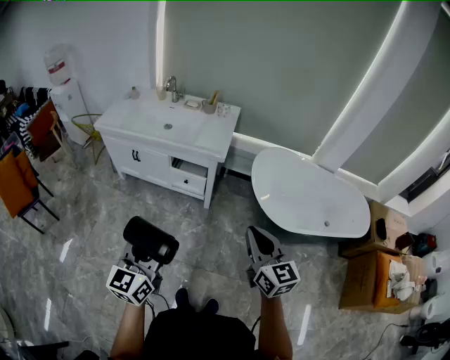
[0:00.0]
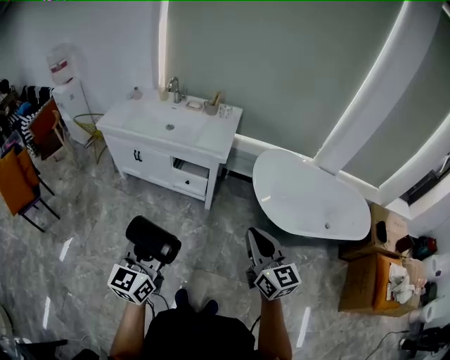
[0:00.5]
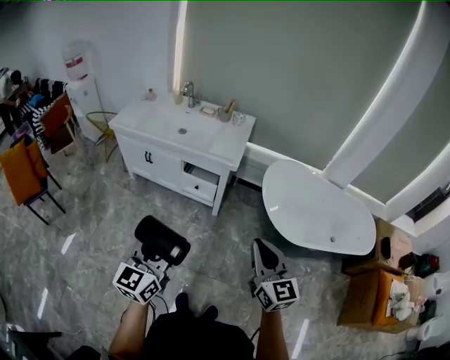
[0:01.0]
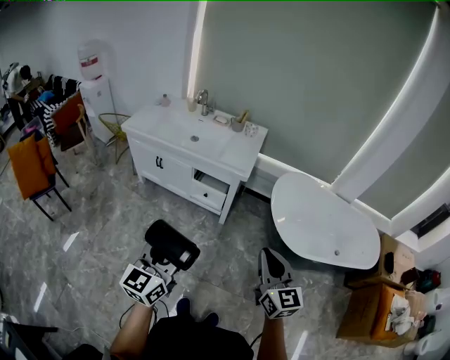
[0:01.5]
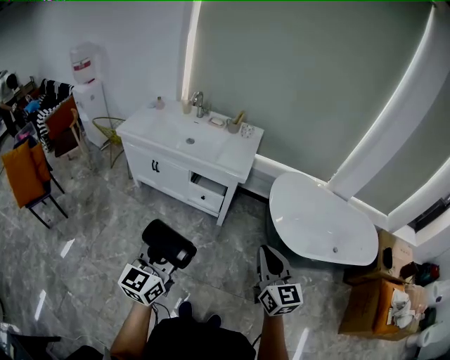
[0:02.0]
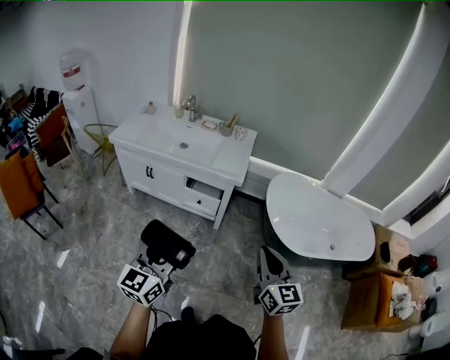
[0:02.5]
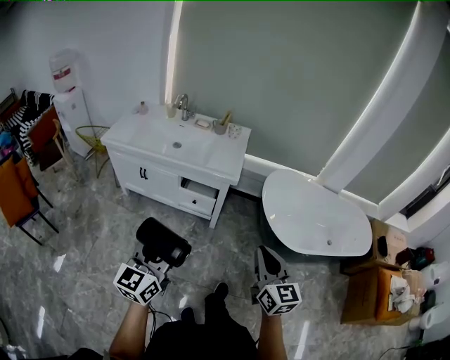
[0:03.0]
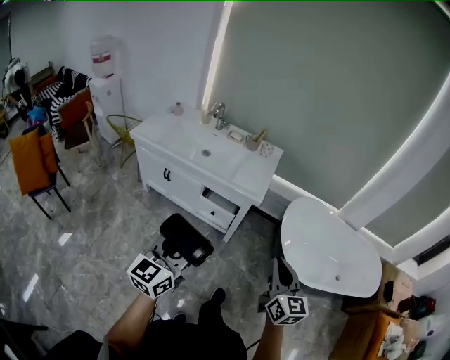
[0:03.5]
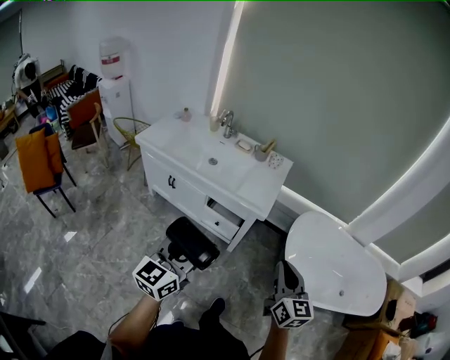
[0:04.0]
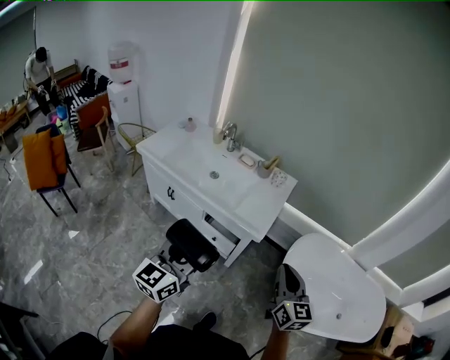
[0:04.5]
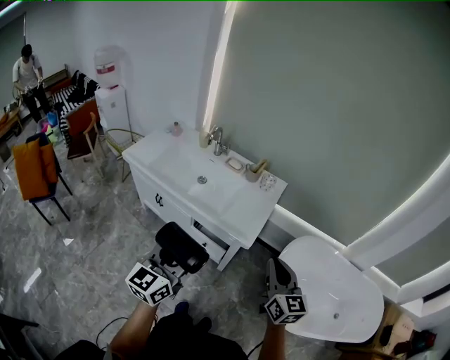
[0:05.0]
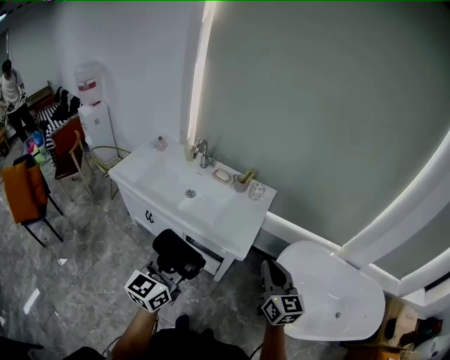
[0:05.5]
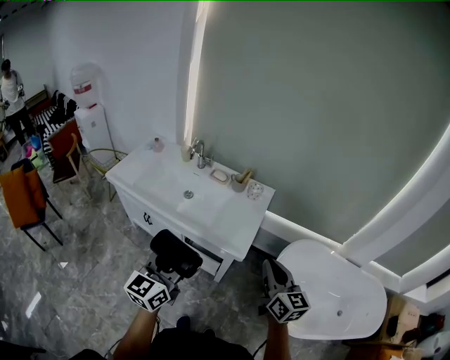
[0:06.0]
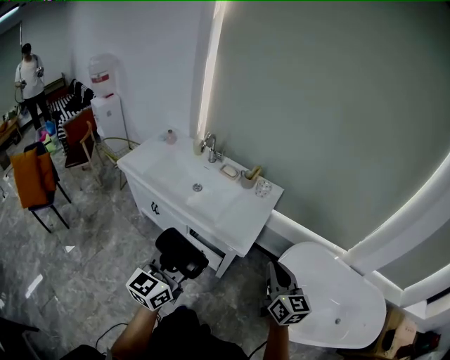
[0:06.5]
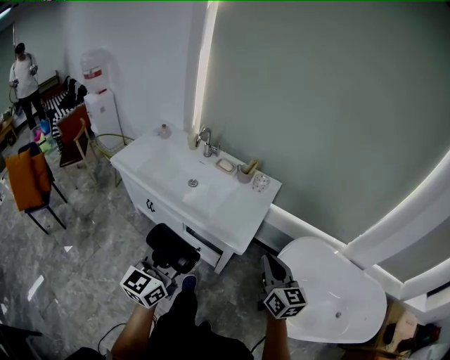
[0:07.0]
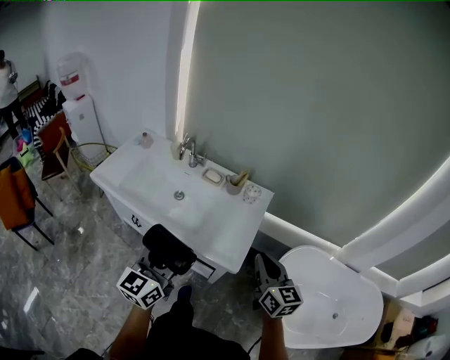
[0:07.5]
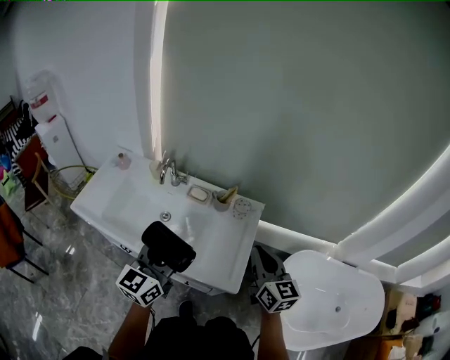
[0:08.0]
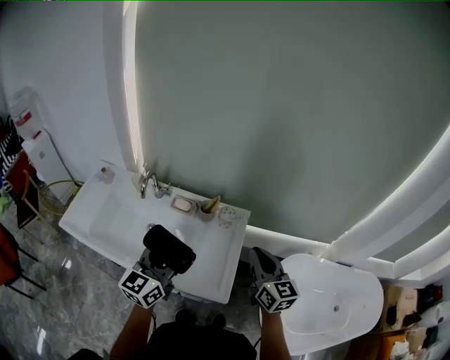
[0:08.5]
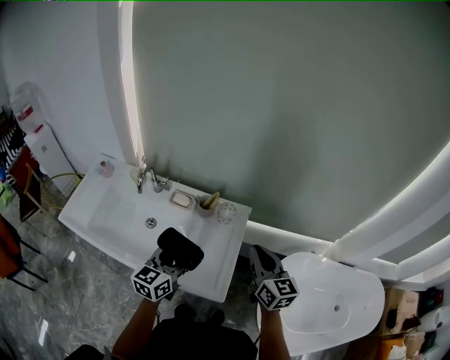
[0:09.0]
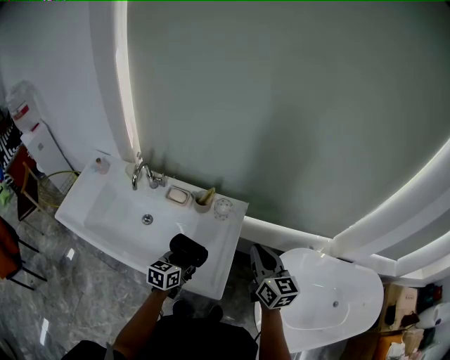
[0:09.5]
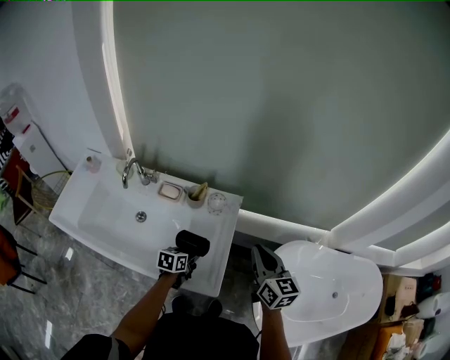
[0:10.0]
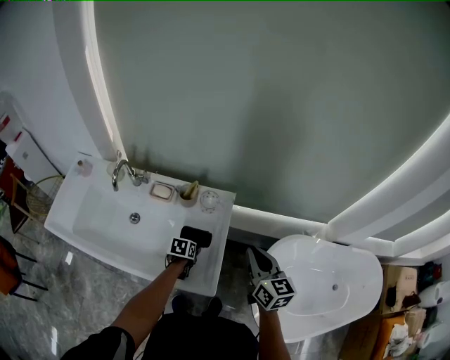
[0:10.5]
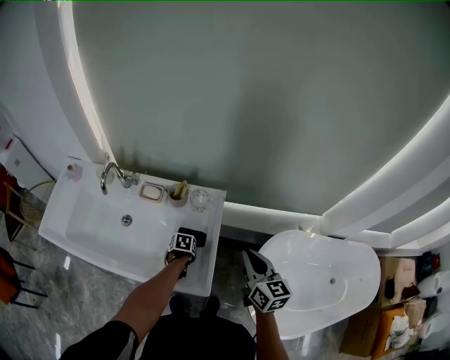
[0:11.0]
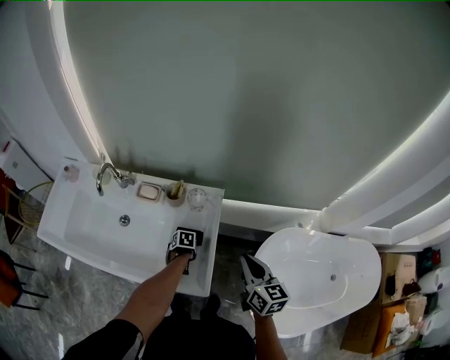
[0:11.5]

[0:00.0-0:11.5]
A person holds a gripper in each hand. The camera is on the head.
0.0 to 2.0 s: There are only small adjustments of the grippers.
2.0 to 4.0 s: The grippers both shift forward by some 20 cm.
4.0 to 6.0 s: The grippers both shift forward by roughly 20 cm.
6.0 to 7.5 s: The two grippers go approximately 15 cm forward.
7.5 to 9.5 s: The right gripper shifts roughly 20 cm forward. Meanwhile the left gripper heads forward, downward and to the right, covering about 35 cm, and changes its angle by approximately 40 degrees.
9.5 to 11.5 s: The right gripper goes approximately 5 cm downward; the left gripper is displaced downward by approximately 20 cm, and angles its fingers downward, by approximately 50 degrees.

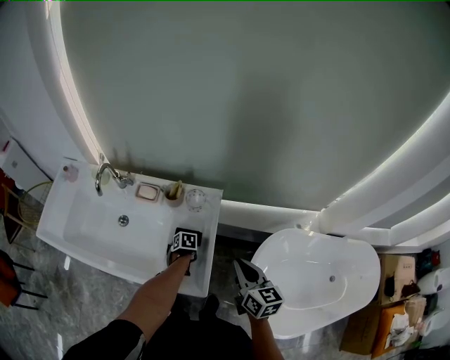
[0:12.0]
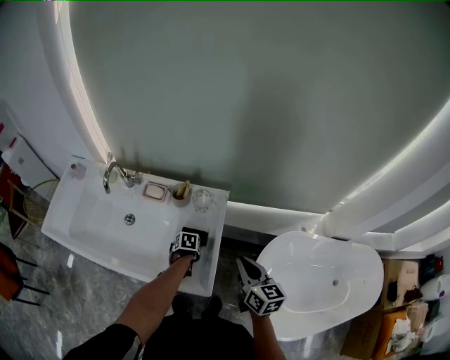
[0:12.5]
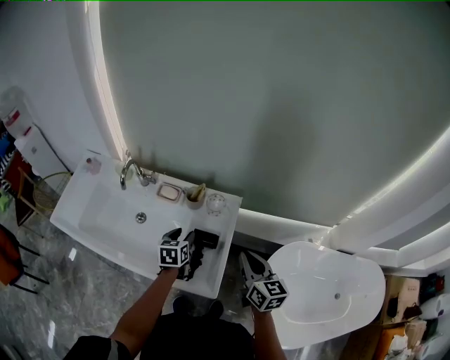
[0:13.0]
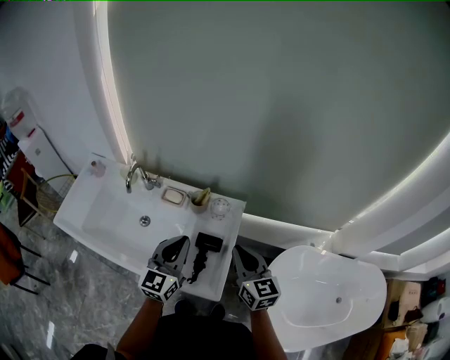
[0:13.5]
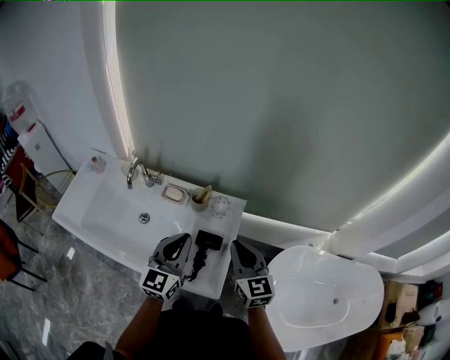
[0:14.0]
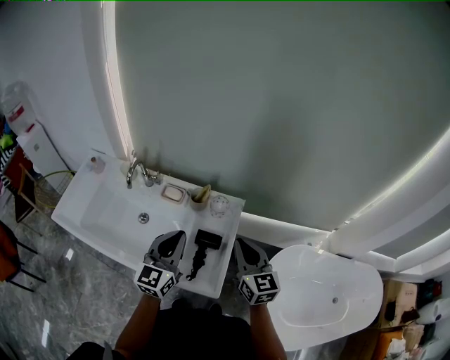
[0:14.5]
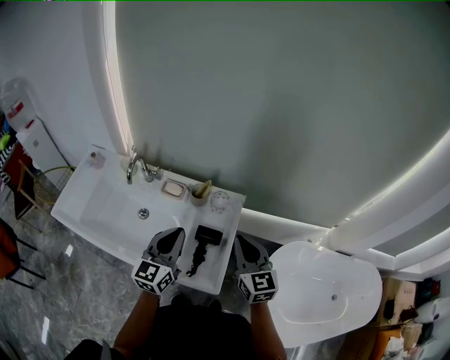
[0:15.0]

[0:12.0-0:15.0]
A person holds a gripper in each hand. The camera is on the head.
12.0 to 13.5 s: The left gripper heads upward, covering approximately 40 cm, points its fingers about 80 degrees further upward, and closes. The right gripper moves roughly 10 cm.
13.5 to 15.0 s: The grippers make only small movements.

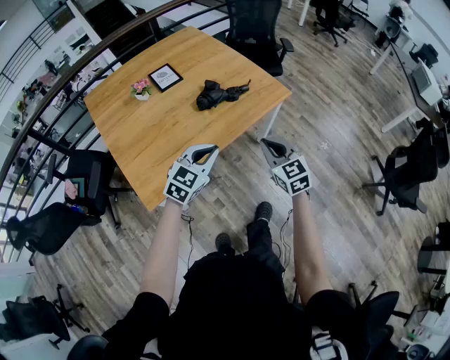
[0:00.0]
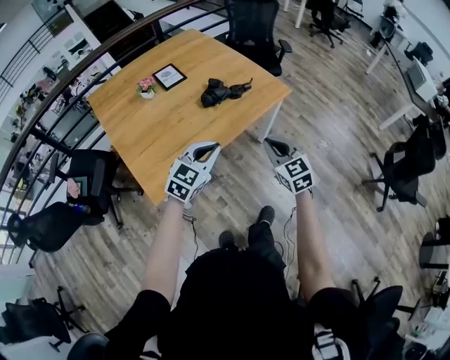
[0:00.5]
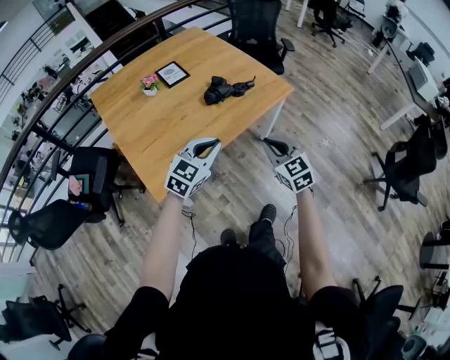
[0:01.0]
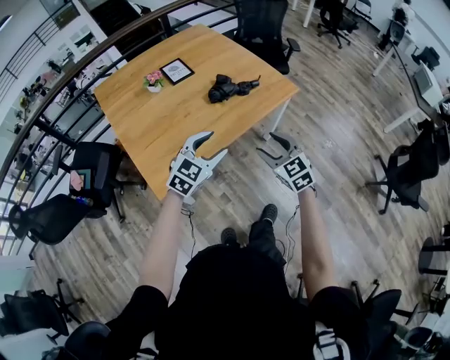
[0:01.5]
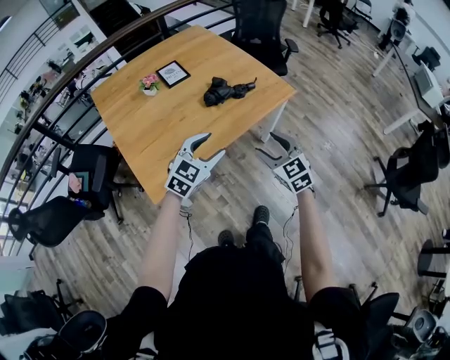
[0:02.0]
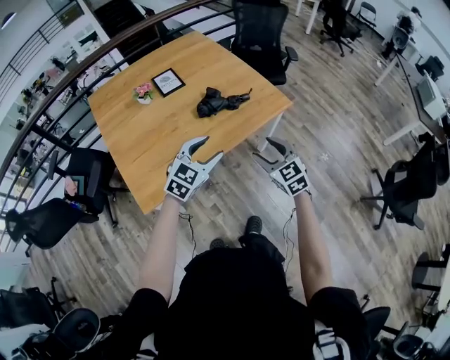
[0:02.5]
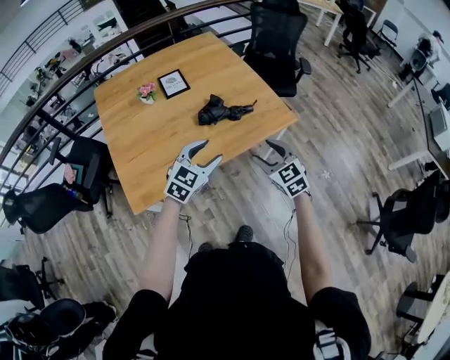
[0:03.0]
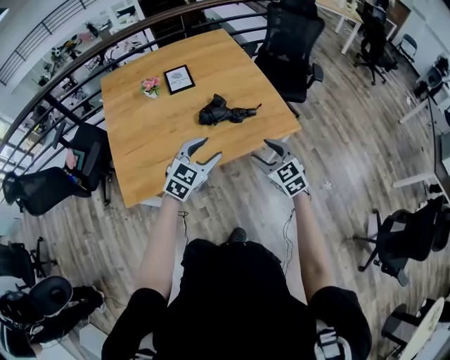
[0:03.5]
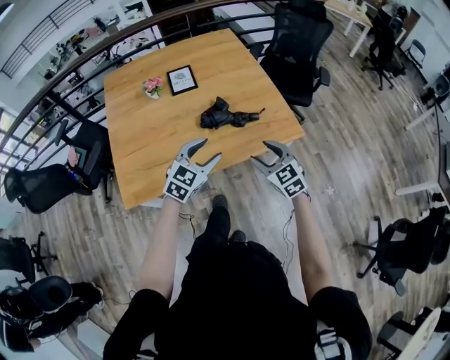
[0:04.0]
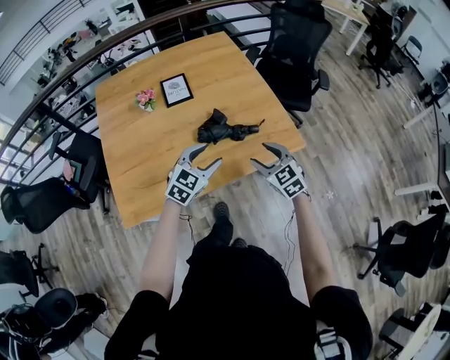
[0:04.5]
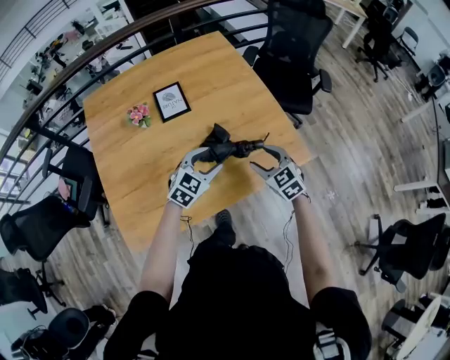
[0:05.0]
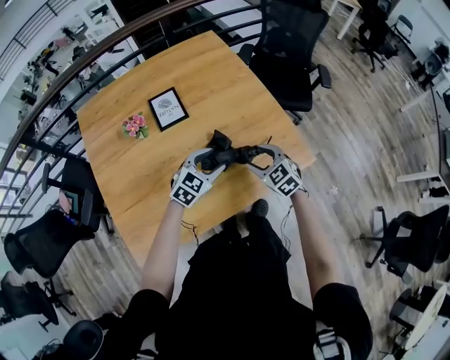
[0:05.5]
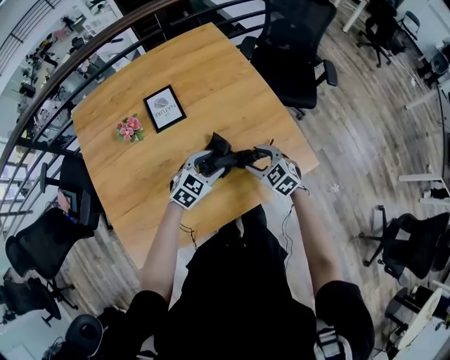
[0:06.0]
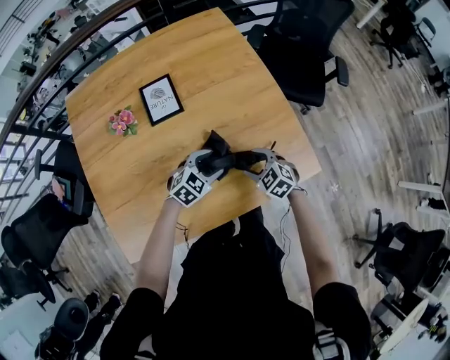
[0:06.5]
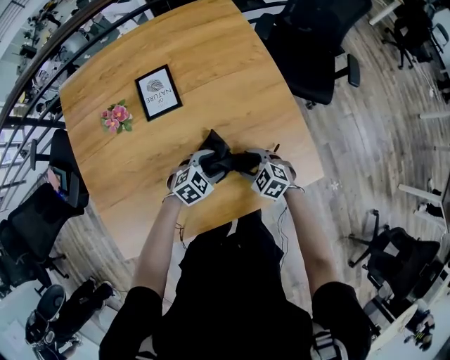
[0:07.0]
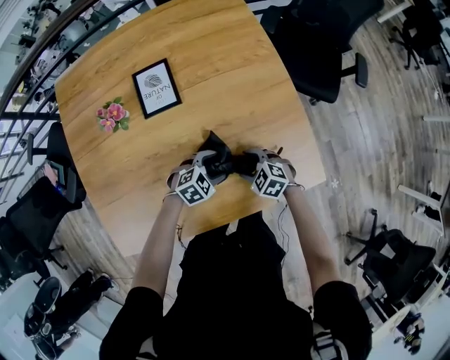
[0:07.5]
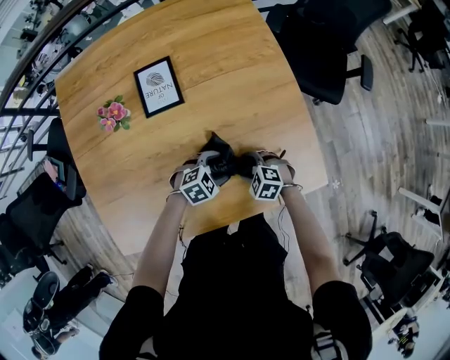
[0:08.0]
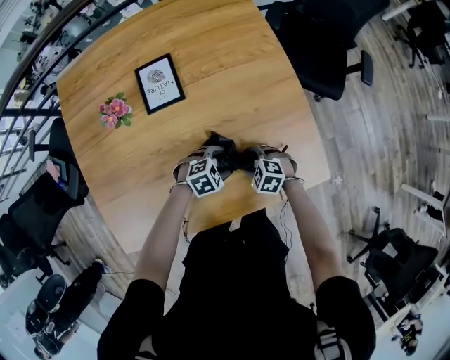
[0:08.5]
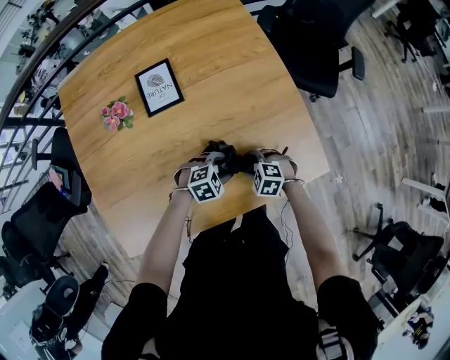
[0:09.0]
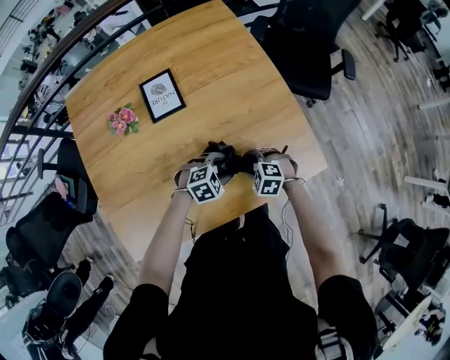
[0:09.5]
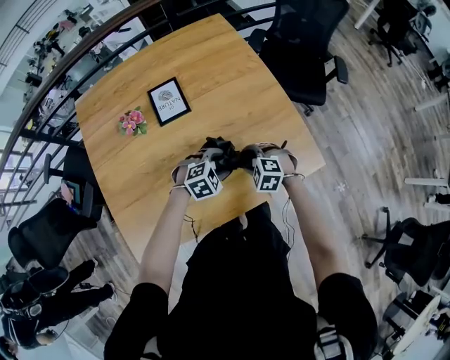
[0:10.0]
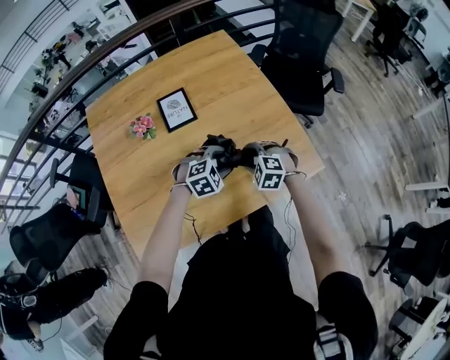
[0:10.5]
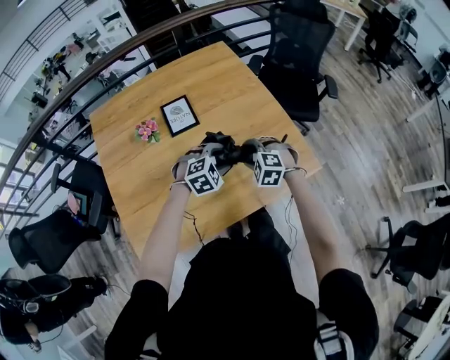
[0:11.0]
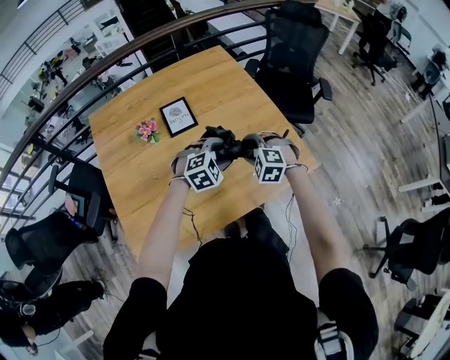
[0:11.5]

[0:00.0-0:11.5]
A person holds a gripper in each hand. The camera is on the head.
0.0 to 2.0 s: The right gripper opens; the left gripper opens.
2.0 to 4.0 s: The two grippers go about 20 cm forward and to the right. The right gripper turns by approximately 20 degrees.
4.0 to 6.0 s: Both grippers travel together forward and downward, about 25 cm.
6.0 to 7.5 s: The two grippers go approximately 15 cm downward. The right gripper turns by roughly 30 degrees; the left gripper changes its angle by approximately 20 degrees.
7.5 to 9.5 s: The grippers stay close to where they were, moving slightly.
9.5 to 11.5 s: The grippers both shift upward by some 15 cm. The right gripper changes its angle by about 20 degrees, while the left gripper changes its angle by approximately 20 degrees.

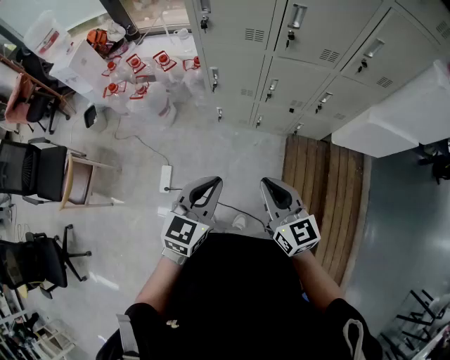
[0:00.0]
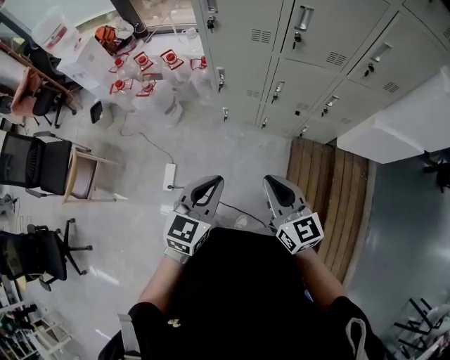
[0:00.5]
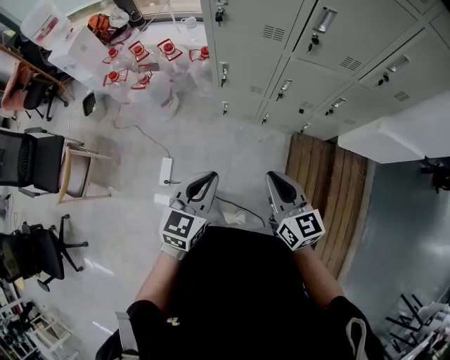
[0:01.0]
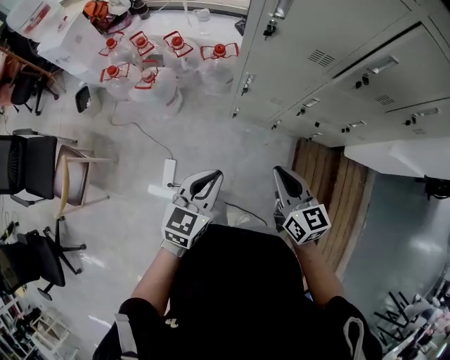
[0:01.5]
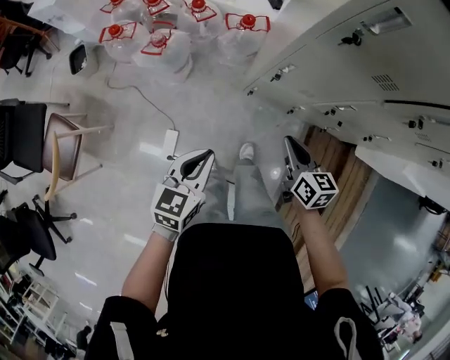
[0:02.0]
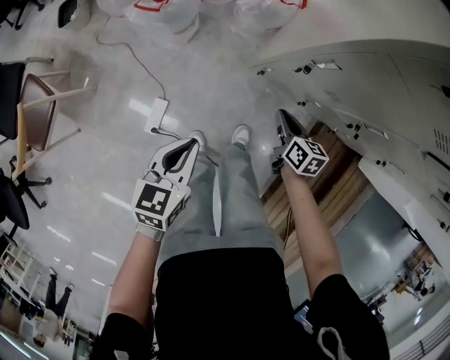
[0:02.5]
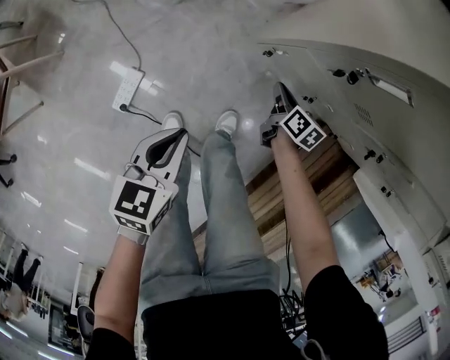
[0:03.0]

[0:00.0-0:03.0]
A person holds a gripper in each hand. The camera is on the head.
0.0 to 1.5 s: The left gripper goes some 25 cm to the left, forward and downward. Meanwhile the right gripper heads forward, to the left and downward, covering about 20 cm.
1.5 to 3.0 s: The right gripper travels forward and downward by approximately 30 cm, and turns by some 30 degrees, while the left gripper heads to the left and forward, covering roughly 15 cm, goes downward and returns, some 10 cm each way, and changes its angle by about 30 degrees.
